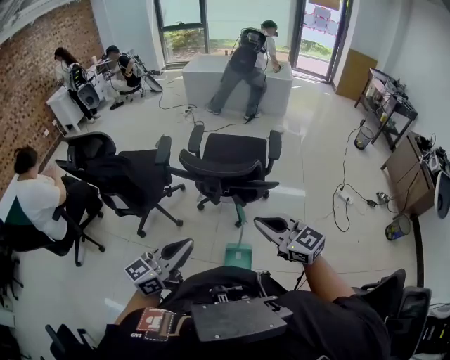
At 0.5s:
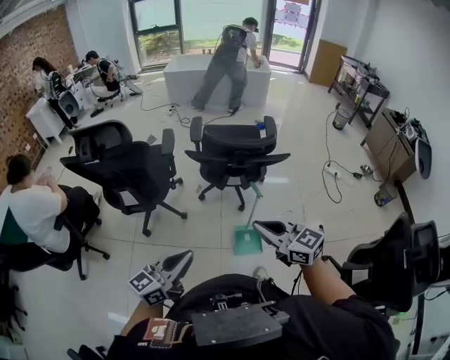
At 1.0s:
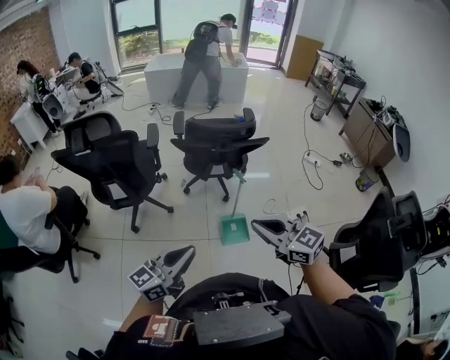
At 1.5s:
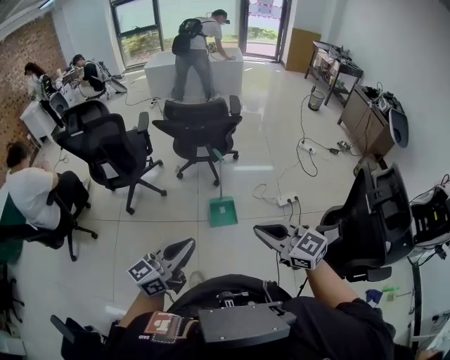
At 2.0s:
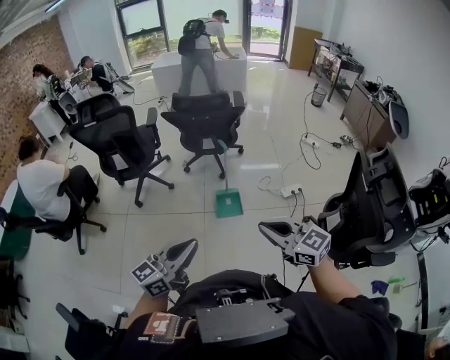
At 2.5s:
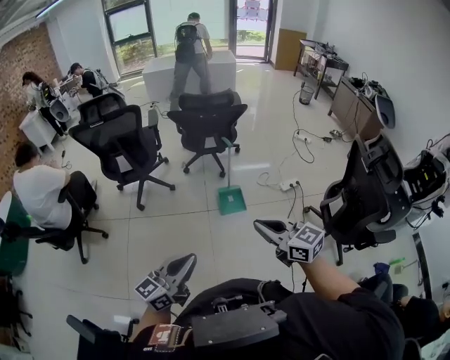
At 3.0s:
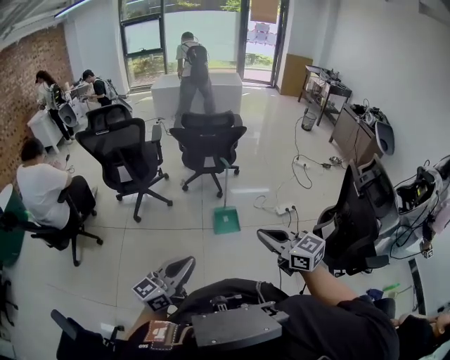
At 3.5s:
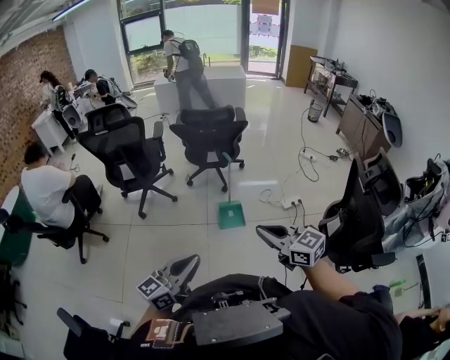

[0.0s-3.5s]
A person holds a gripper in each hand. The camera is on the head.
0.0s to 2.0s: The pair of grippers is taken backward, some 70 cm.
2.0s to 3.5s: The right gripper goes approximately 10 cm to the left and backward. The left gripper travels backward by some 10 cm, and goes to the left and returns, roughly 20 cm each way.

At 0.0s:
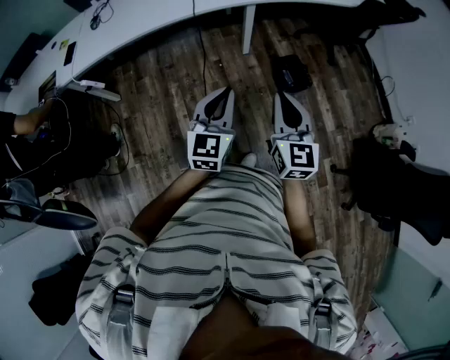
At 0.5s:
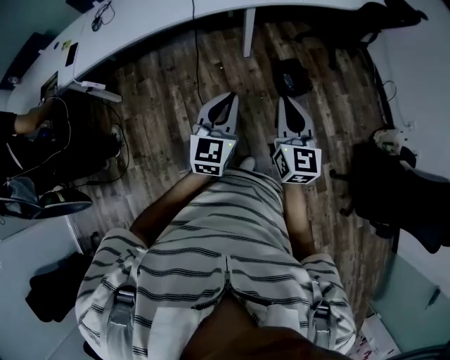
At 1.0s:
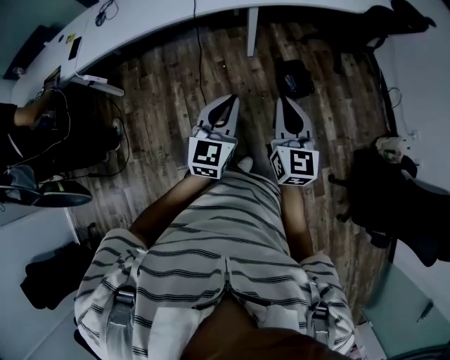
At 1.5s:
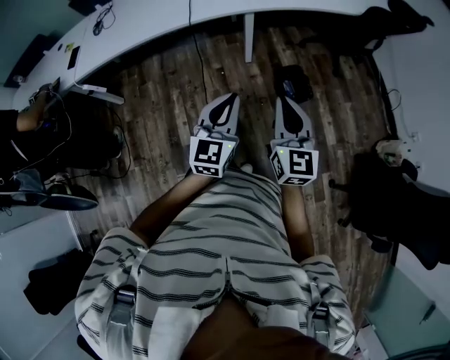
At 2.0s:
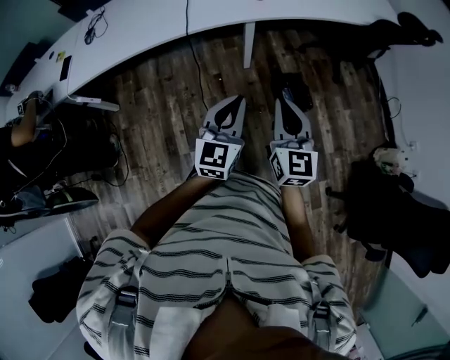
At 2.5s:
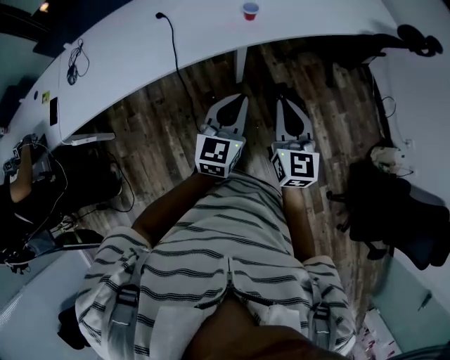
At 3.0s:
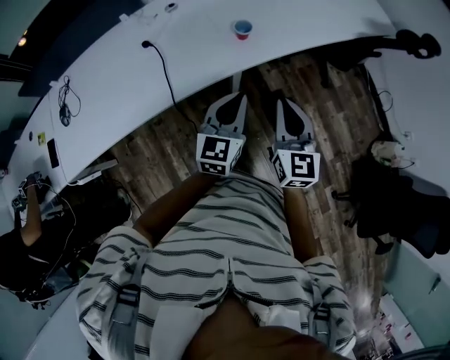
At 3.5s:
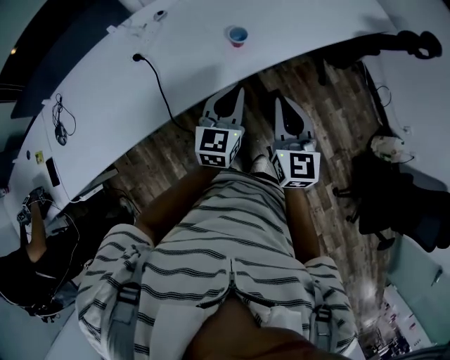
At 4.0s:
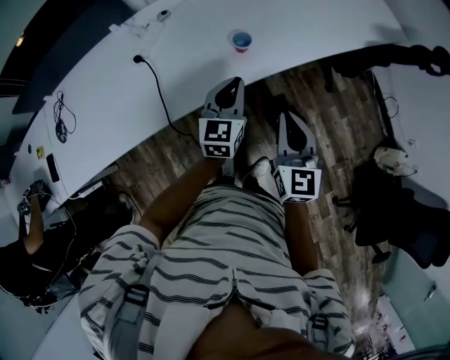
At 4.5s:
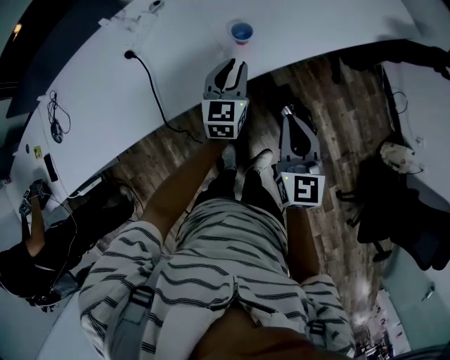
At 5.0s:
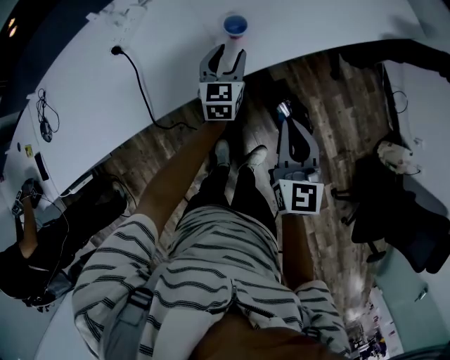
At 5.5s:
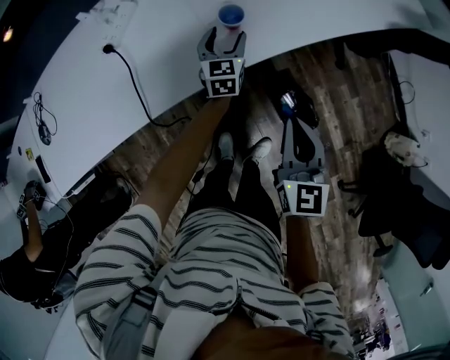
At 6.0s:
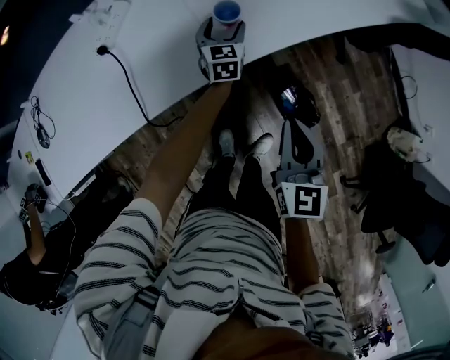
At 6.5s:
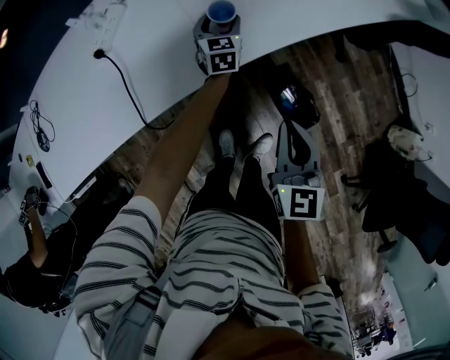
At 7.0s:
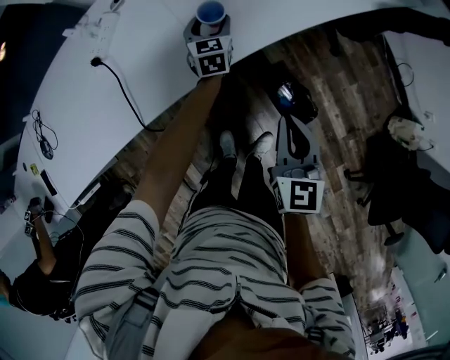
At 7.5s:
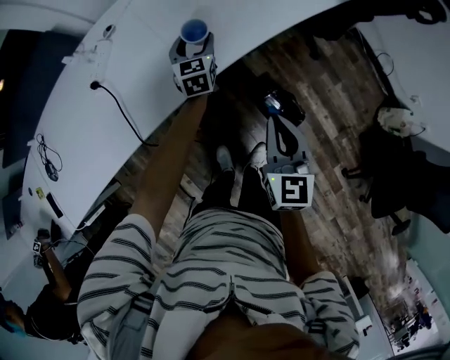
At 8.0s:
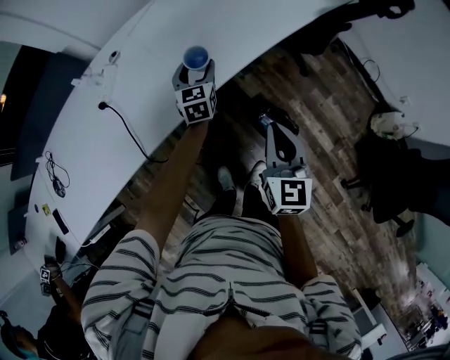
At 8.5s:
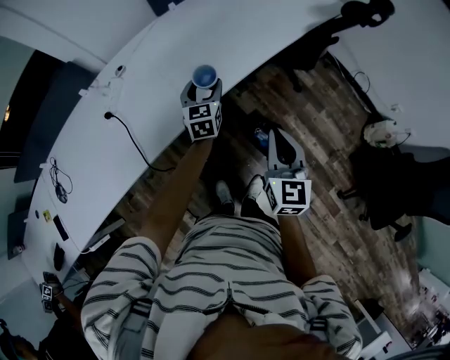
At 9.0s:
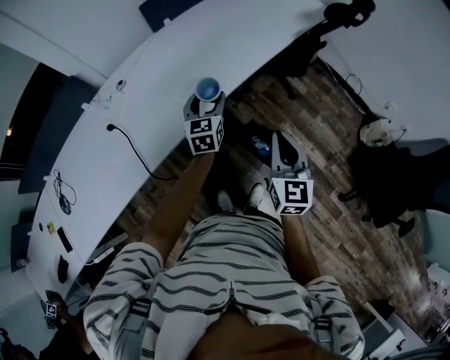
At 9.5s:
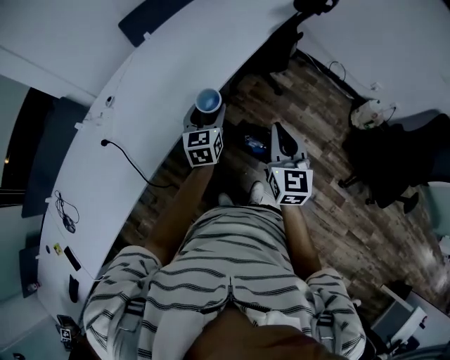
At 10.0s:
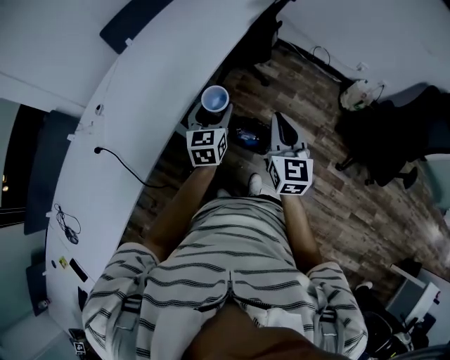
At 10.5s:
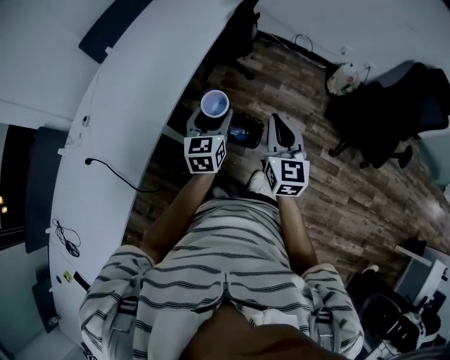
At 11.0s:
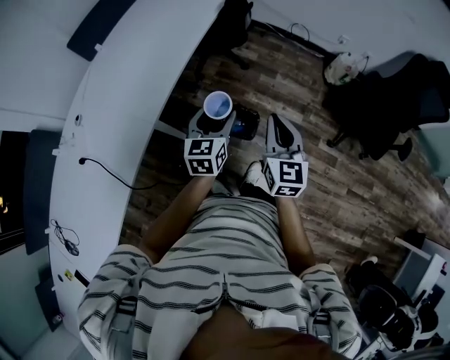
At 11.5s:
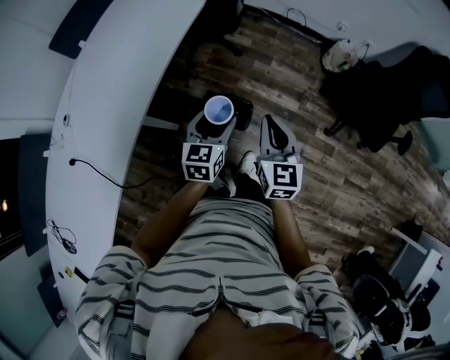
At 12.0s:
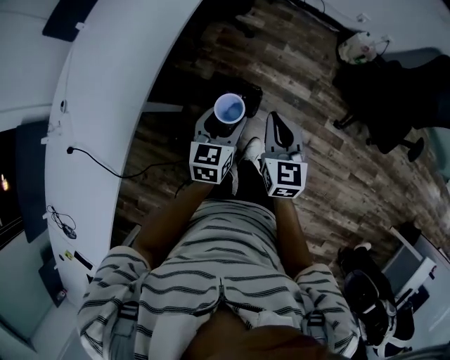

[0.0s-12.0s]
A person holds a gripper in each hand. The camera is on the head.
0.0s to 2.0s: The right gripper heads forward, covering about 15 cm, while the left gripper shifts about 15 cm forward and to the right.
2.0s to 4.0s: The two grippers go approximately 40 cm forward.
4.0s to 6.0s: The right gripper is displaced downward by approximately 10 cm, while the left gripper goes roughly 25 cm downward and forward, and opens.
6.0s to 8.0s: The left gripper heads upward, backward and to the right, covering roughly 15 cm, while the right gripper goes about 10 cm upward and to the right.
8.0s to 10.0s: The left gripper changes place by some 25 cm, and turns by some 30 degrees. The right gripper moves roughly 15 cm, and changes its angle by roughly 20 degrees.
10.0s to 12.0s: The left gripper shifts some 20 cm to the right and downward, and changes its angle by about 20 degrees. The right gripper travels downward and to the right by approximately 15 cm.

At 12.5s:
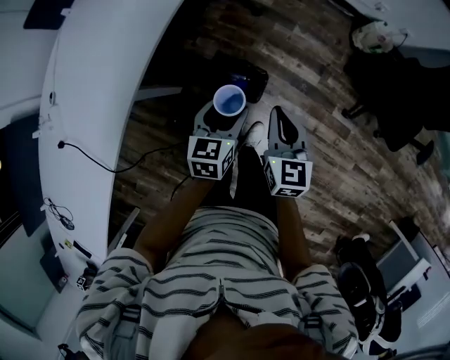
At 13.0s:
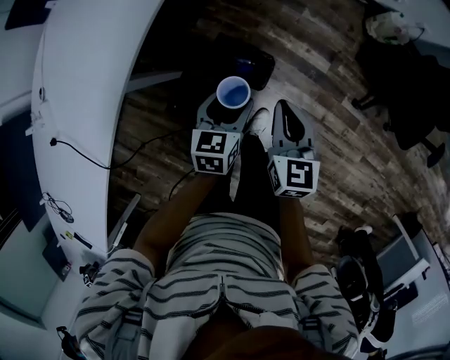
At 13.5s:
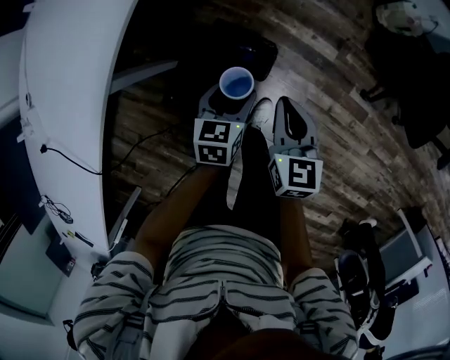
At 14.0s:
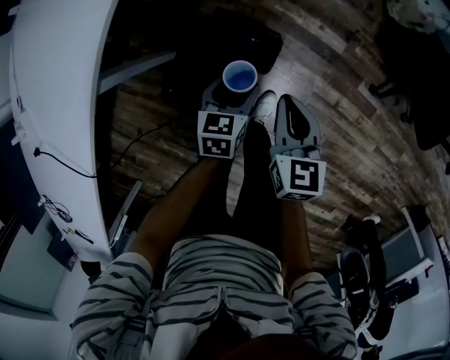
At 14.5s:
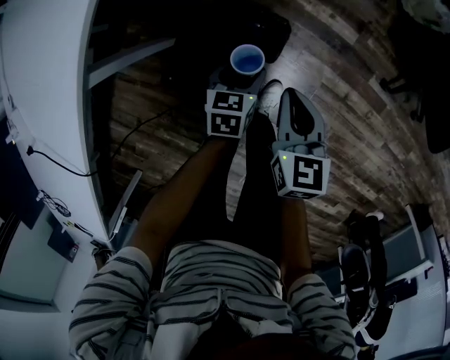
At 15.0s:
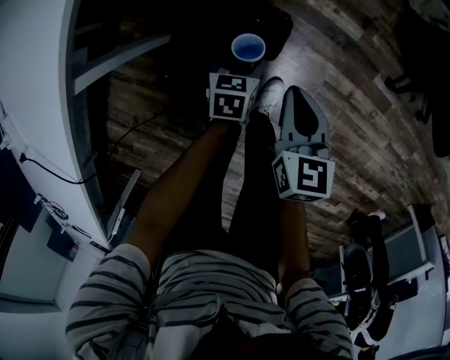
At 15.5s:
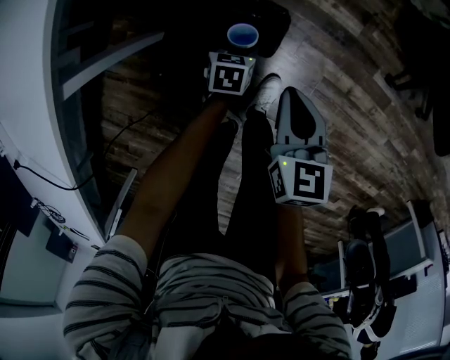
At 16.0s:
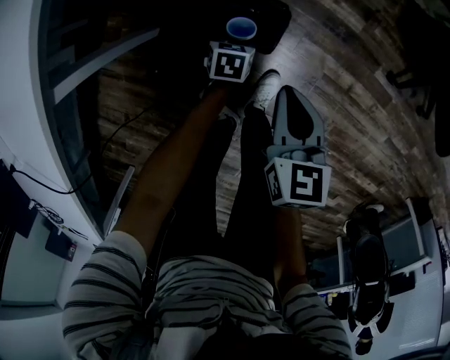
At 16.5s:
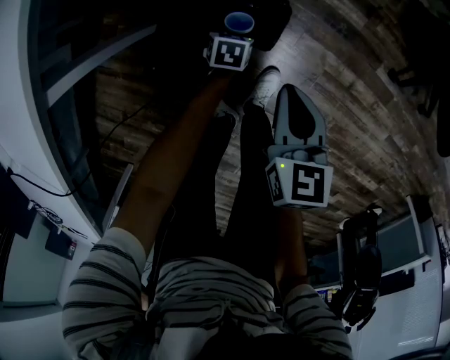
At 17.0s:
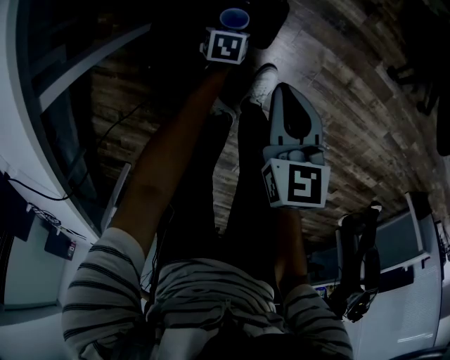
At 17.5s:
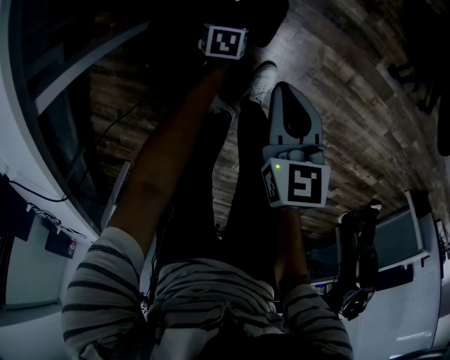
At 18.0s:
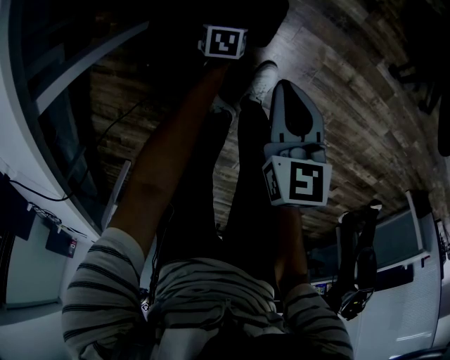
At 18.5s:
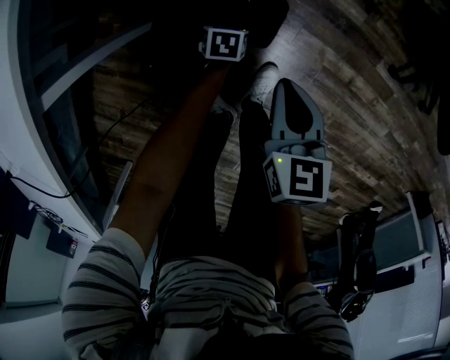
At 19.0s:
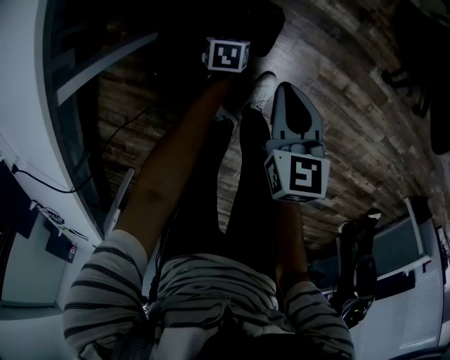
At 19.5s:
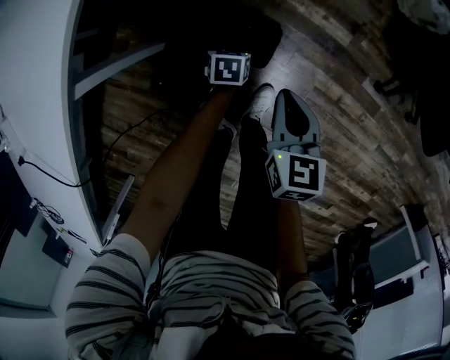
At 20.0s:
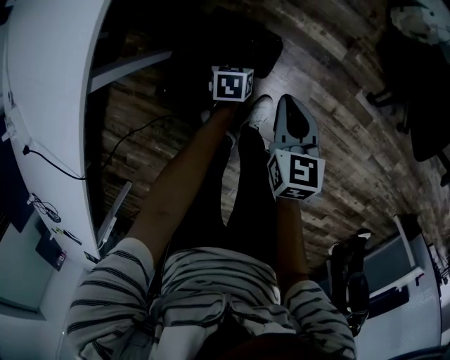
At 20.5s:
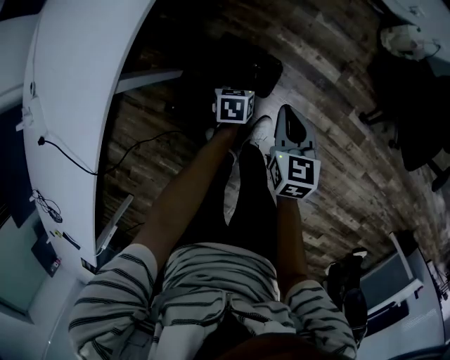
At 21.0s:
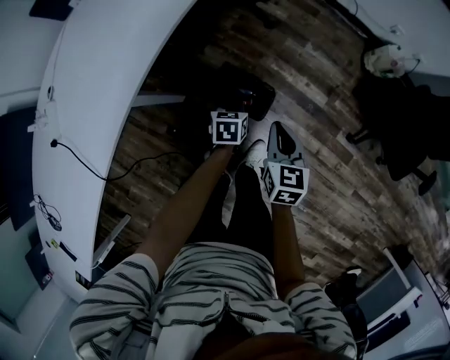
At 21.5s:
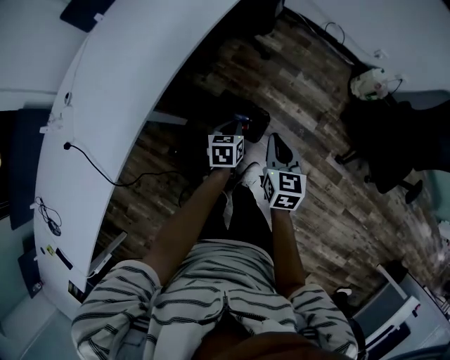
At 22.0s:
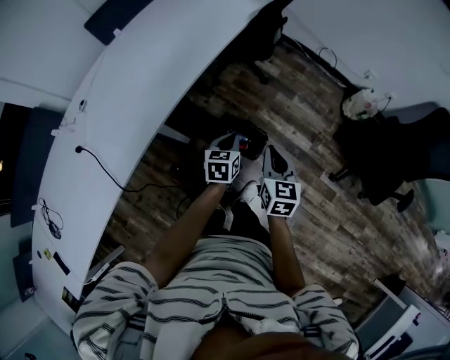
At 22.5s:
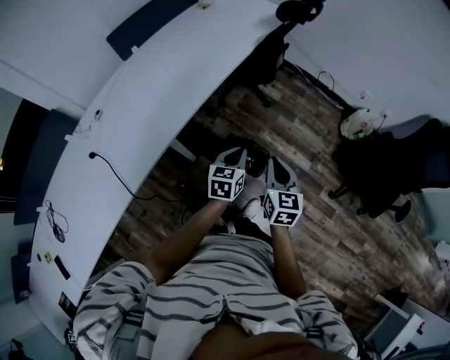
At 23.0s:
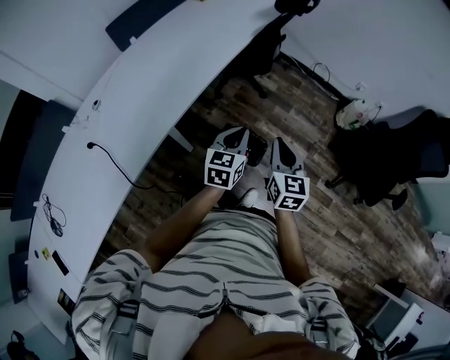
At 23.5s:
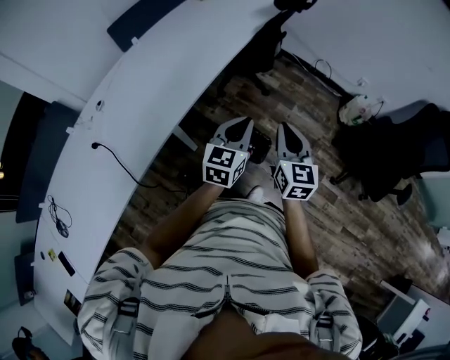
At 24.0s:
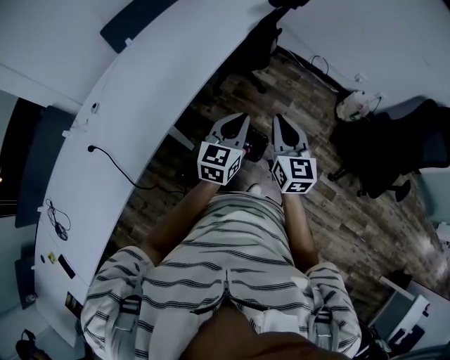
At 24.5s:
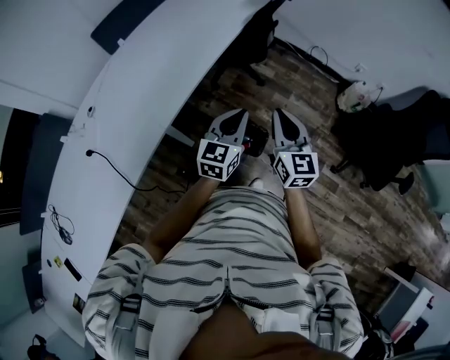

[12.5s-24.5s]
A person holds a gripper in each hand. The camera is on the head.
12.5s to 14.5s: Both grippers move downward, approximately 25 cm.
14.5s to 16.5s: The left gripper moves downward, about 20 cm, while the right gripper goes about 10 cm downward.
16.5s to 18.5s: There are only small adjustments of the grippers.
18.5s to 20.5s: The left gripper travels upward by approximately 25 cm, and closes; the right gripper heads upward, covering roughly 15 cm.
20.5s to 22.5s: Both grippers travel together upward, roughly 30 cm. The left gripper swivels some 30 degrees.
22.5s to 24.5s: The left gripper goes approximately 10 cm upward, and turns by approximately 20 degrees. Meanwhile the right gripper moves upward and forward, some 10 cm.
